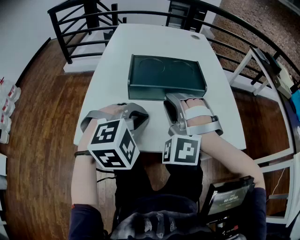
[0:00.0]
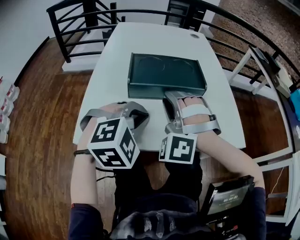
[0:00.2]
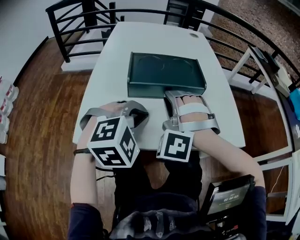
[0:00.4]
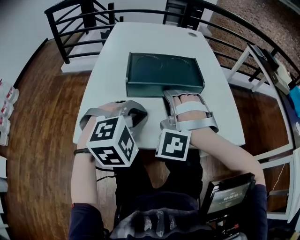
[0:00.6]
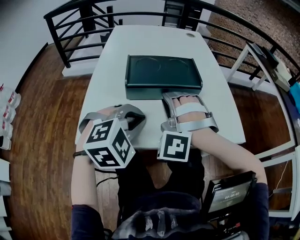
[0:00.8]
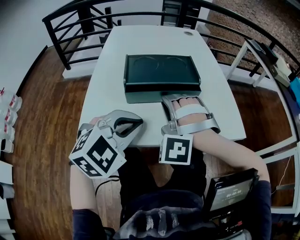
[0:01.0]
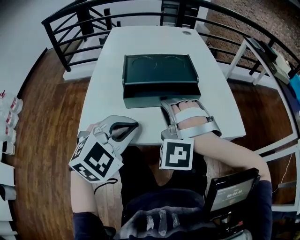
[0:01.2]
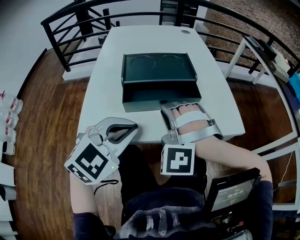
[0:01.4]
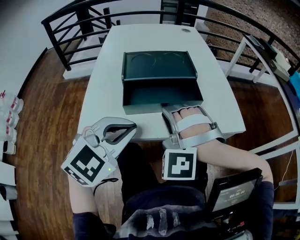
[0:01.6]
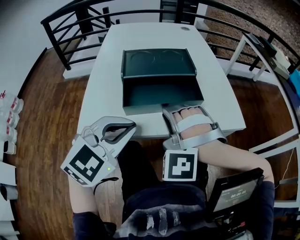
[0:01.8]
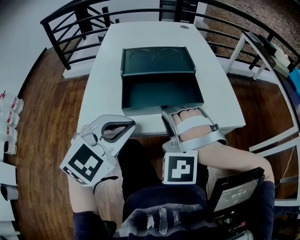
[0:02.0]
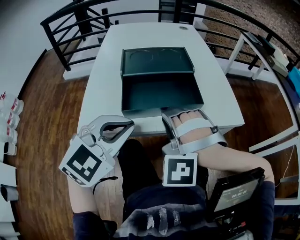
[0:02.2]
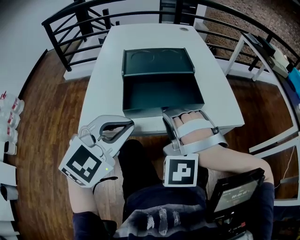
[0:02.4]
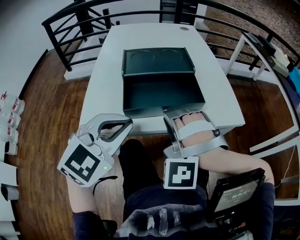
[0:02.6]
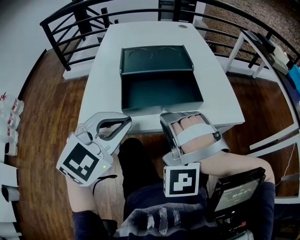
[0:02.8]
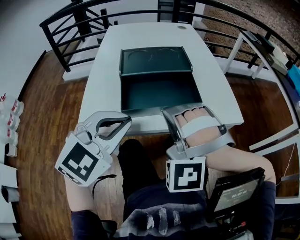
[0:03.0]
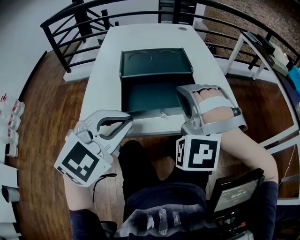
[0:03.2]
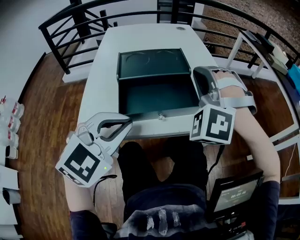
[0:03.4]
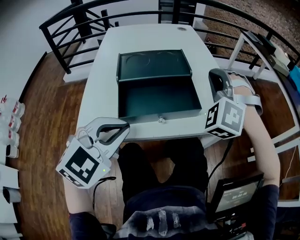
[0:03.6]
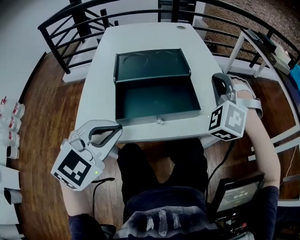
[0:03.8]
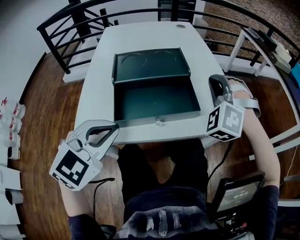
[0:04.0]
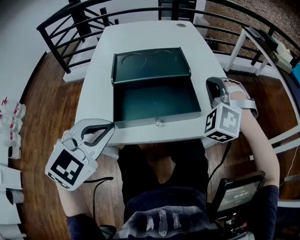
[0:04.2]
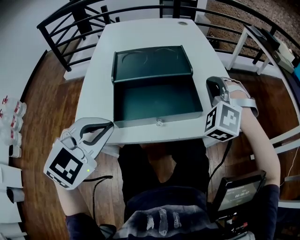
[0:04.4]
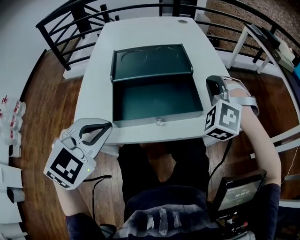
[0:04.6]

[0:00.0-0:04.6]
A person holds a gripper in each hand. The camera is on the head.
0:00.0 to 0:01.6: The left gripper moves some 10 cm, and rotates some 30 degrees.
0:03.0 to 0:04.6: The left gripper moves approximately 5 cm.

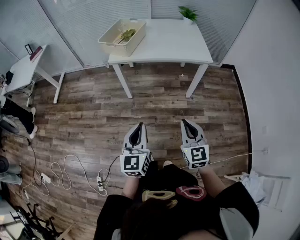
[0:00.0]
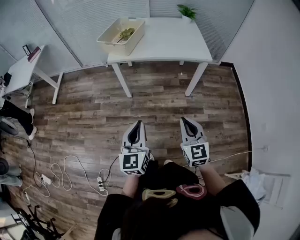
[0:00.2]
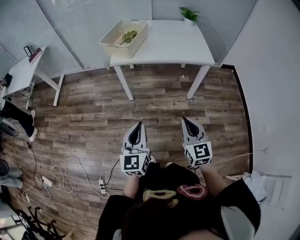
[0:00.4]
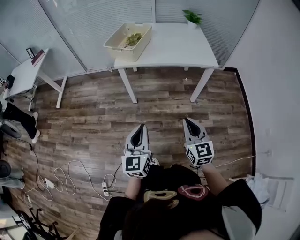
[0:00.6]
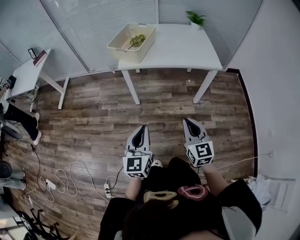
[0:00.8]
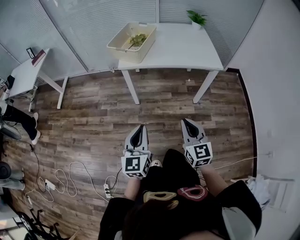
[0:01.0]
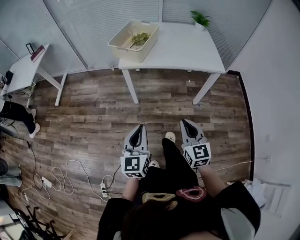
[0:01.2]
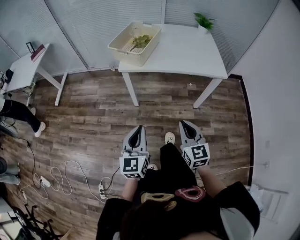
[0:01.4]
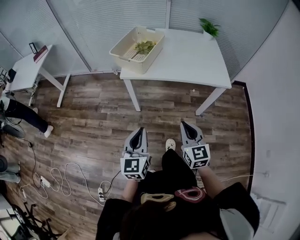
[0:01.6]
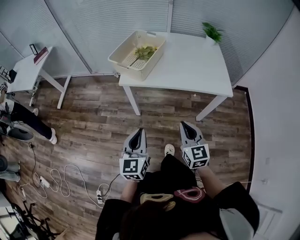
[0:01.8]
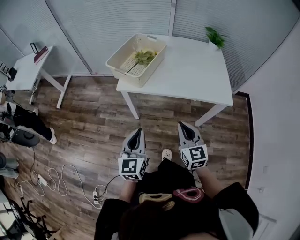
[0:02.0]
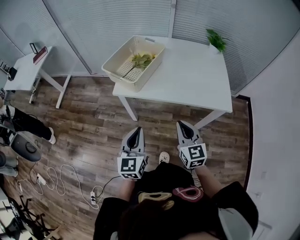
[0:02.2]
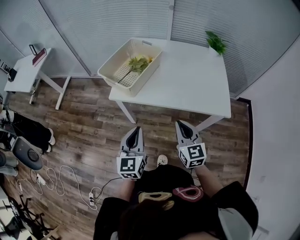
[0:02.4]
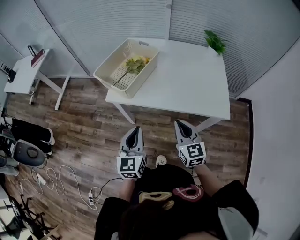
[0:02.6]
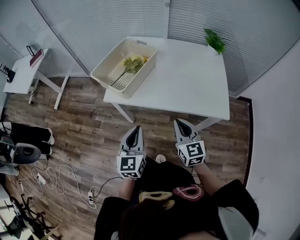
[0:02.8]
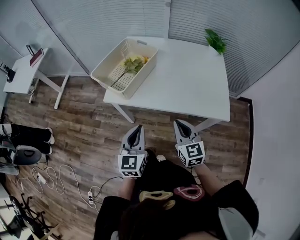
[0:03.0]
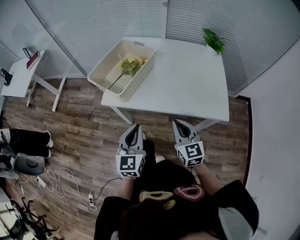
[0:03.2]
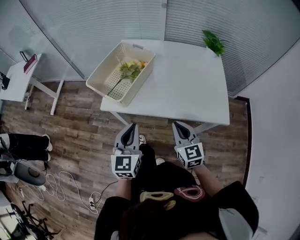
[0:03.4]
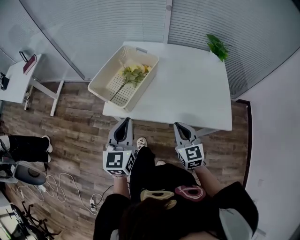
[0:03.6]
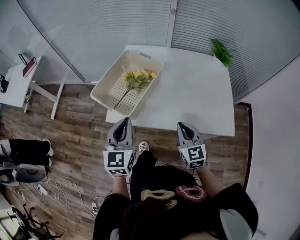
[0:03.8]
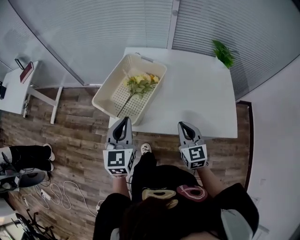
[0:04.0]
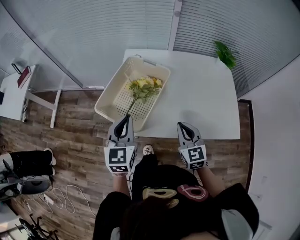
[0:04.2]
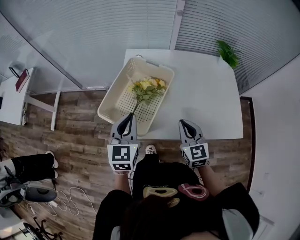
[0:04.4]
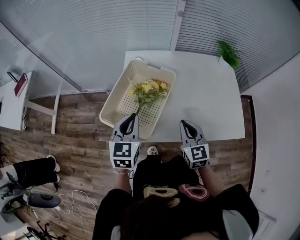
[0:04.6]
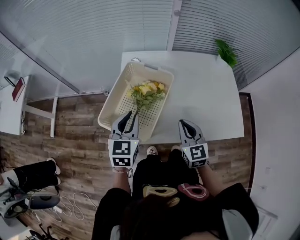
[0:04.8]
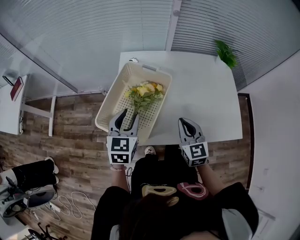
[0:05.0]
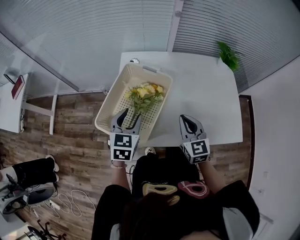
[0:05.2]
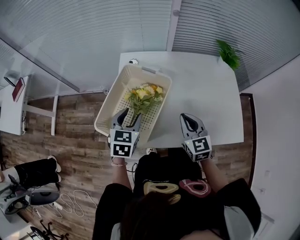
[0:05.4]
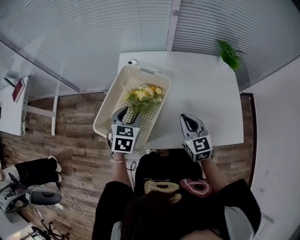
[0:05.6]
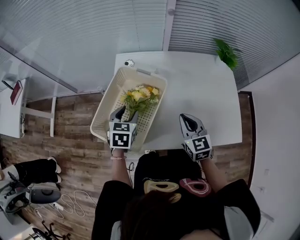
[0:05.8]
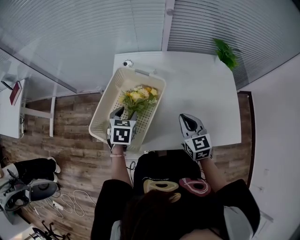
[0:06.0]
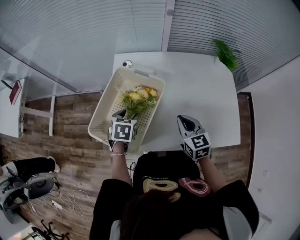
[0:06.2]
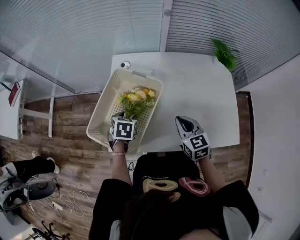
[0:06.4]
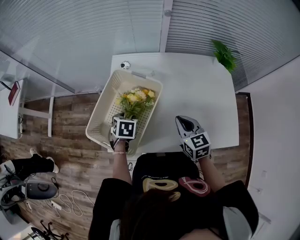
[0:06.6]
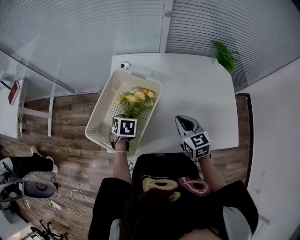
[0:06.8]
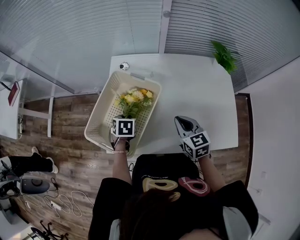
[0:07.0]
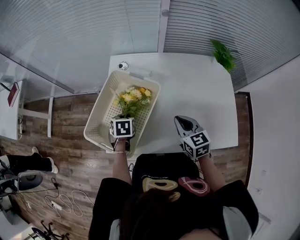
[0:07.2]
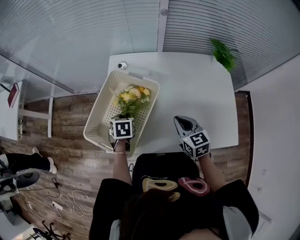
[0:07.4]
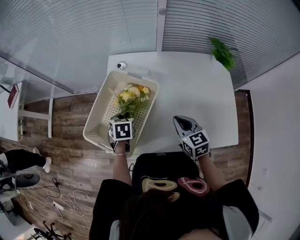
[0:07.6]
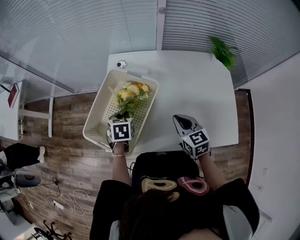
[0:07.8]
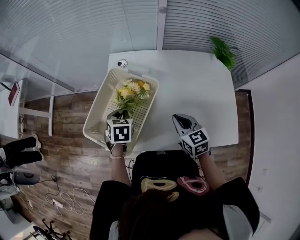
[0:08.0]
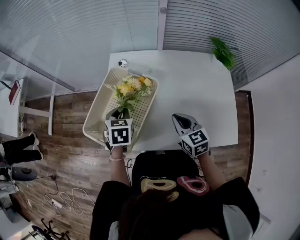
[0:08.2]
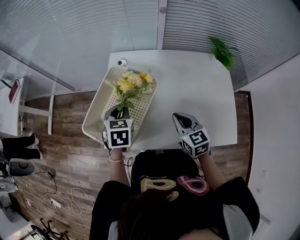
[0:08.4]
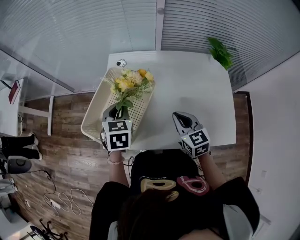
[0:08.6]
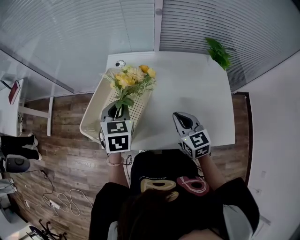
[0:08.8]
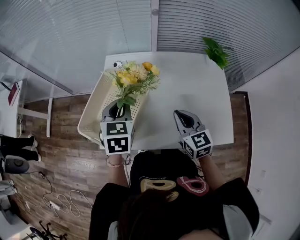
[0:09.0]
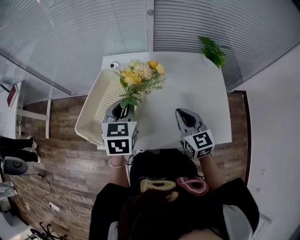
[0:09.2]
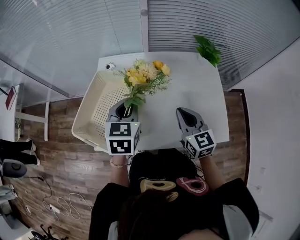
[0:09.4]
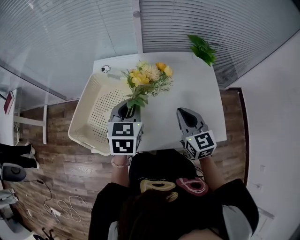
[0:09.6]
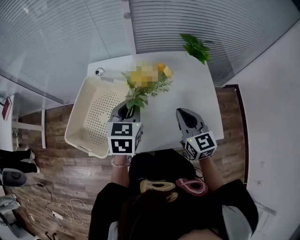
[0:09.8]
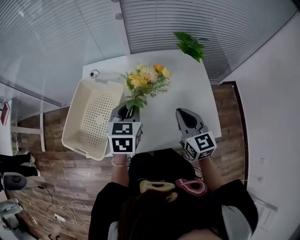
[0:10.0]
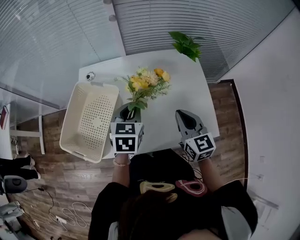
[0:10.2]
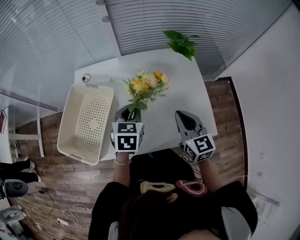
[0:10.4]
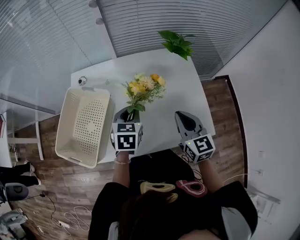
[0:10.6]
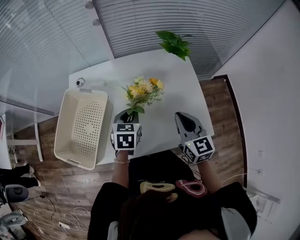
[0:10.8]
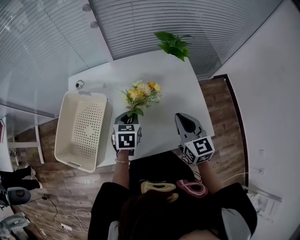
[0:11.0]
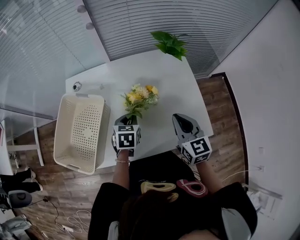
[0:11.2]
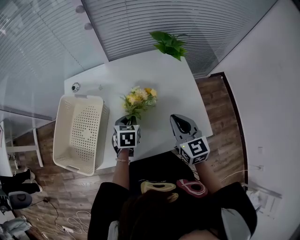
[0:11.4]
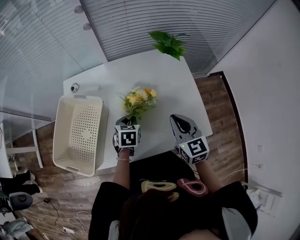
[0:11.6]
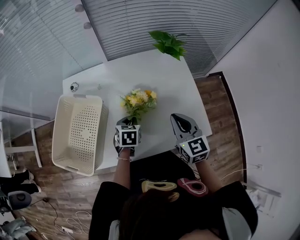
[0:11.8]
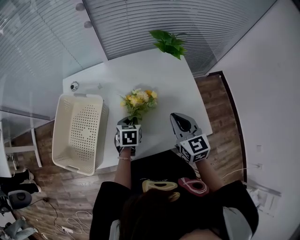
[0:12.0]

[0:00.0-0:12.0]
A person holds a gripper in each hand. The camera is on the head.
0:00.0 to 0:01.6: The grippers both shift forward by approximately 20 cm.
0:01.6 to 0:03.0: Both grippers travel together forward and to the right, about 25 cm.
0:03.0 to 0:04.4: The two grippers go some 25 cm forward and to the left.
0:04.4 to 0:06.0: The right gripper goes about 10 cm forward. Meanwhile the left gripper goes some 15 cm forward and downward, tilts its fingers roughly 30 degrees downward, and opens its fingers.
0:06.0 to 0:07.6: The left gripper travels downward by roughly 5 cm, and closes up.
0:07.6 to 0:09.0: The left gripper heads upward, covering roughly 20 cm, and rotates about 30 degrees, while the right gripper travels upward by roughly 5 cm.
0:09.0 to 0:10.4: Both grippers move to the right, roughly 15 cm.
0:10.4 to 0:12.0: The left gripper travels downward by about 15 cm.

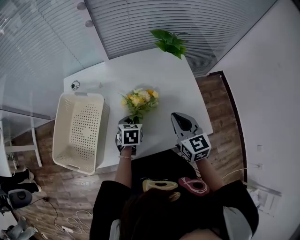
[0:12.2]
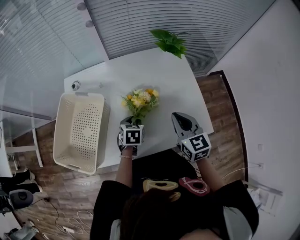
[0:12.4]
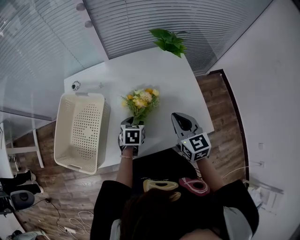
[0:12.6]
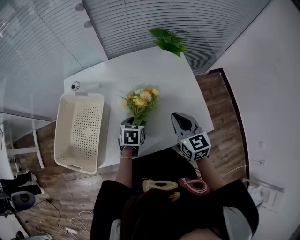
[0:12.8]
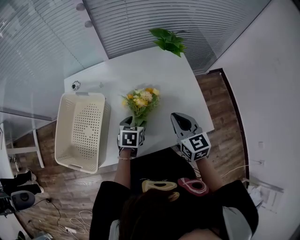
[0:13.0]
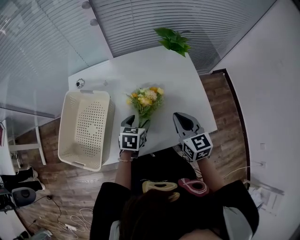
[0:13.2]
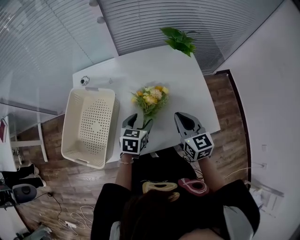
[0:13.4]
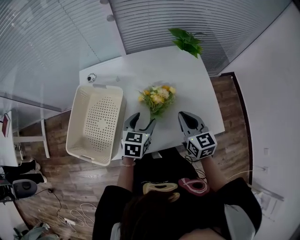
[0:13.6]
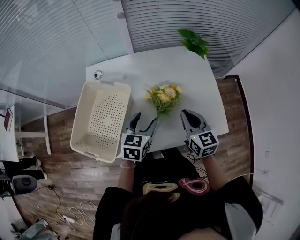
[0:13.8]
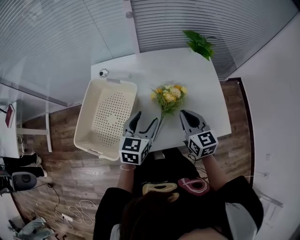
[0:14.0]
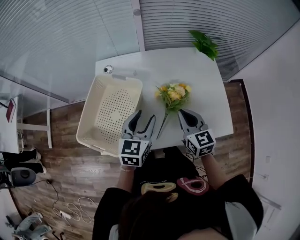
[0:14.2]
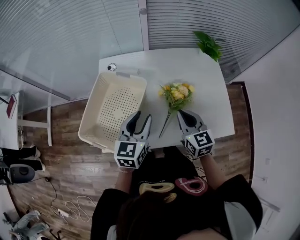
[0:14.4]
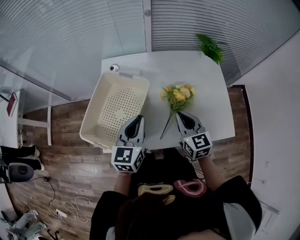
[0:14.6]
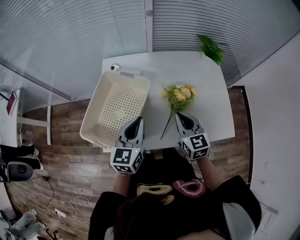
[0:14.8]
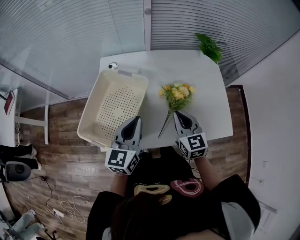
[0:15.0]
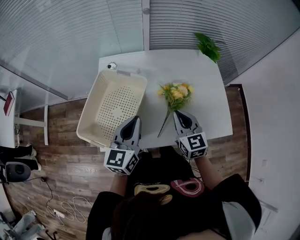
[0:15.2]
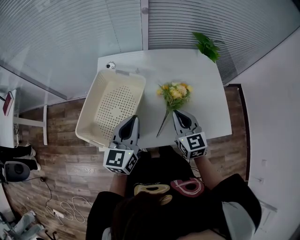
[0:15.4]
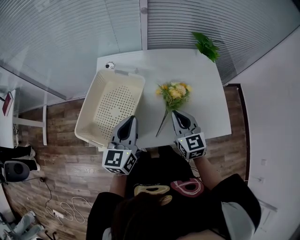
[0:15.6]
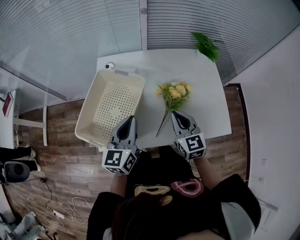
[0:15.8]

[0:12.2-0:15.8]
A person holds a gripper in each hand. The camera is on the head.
0:12.2 to 0:14.0: The left gripper shifts about 15 cm upward and to the left, rotates some 30 degrees, and opens up; the right gripper shifts some 10 cm to the left.
0:14.0 to 0:15.8: The left gripper moves to the left and upward, about 10 cm, swivels approximately 20 degrees, and closes. Meanwhile the right gripper is displaced to the left by roughly 5 cm.

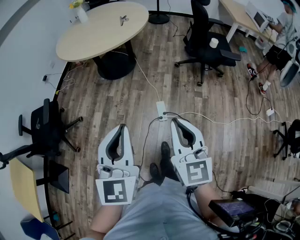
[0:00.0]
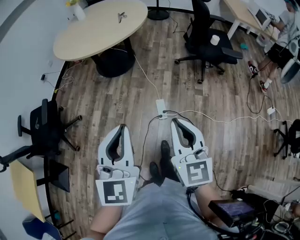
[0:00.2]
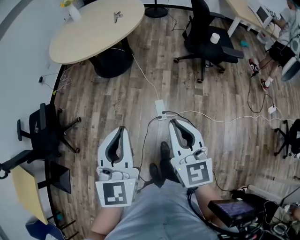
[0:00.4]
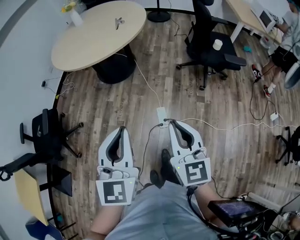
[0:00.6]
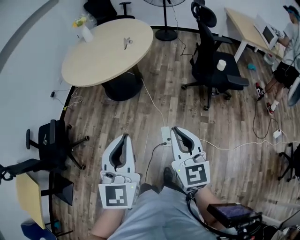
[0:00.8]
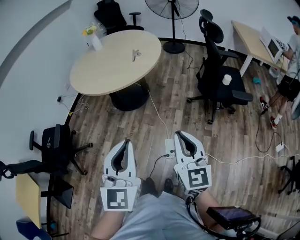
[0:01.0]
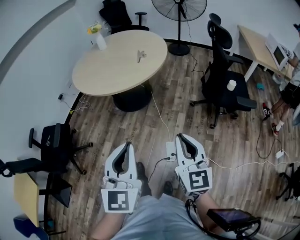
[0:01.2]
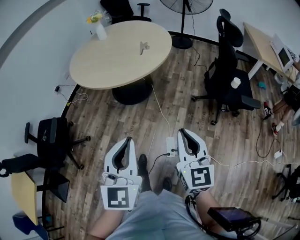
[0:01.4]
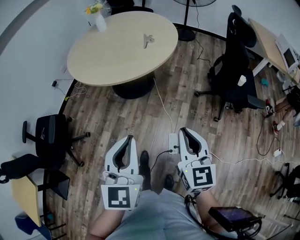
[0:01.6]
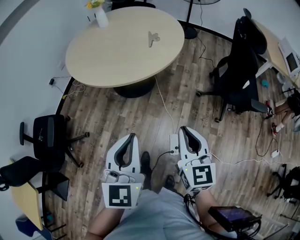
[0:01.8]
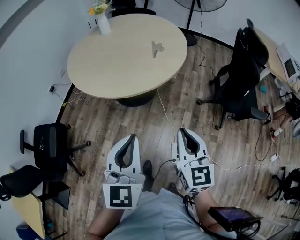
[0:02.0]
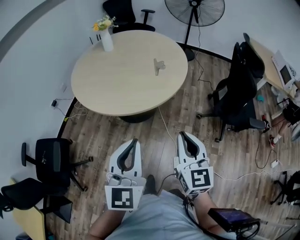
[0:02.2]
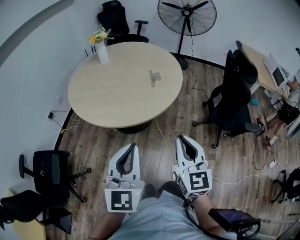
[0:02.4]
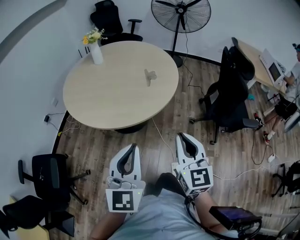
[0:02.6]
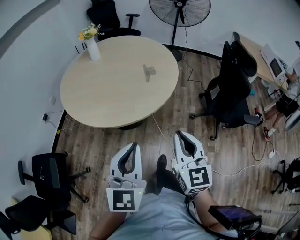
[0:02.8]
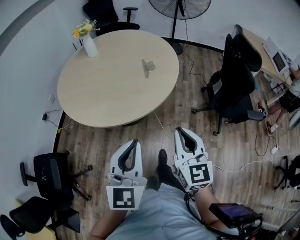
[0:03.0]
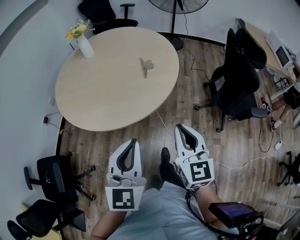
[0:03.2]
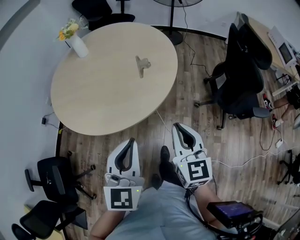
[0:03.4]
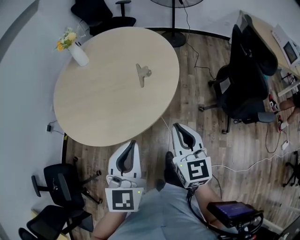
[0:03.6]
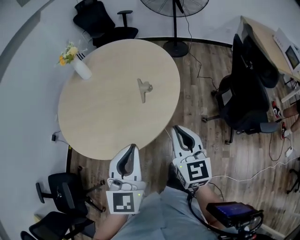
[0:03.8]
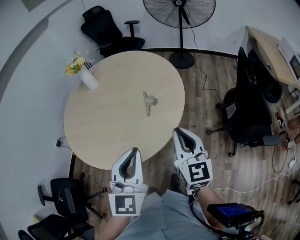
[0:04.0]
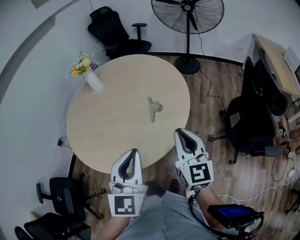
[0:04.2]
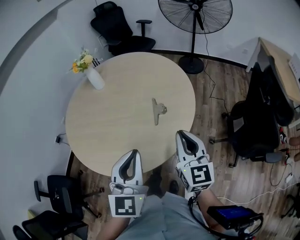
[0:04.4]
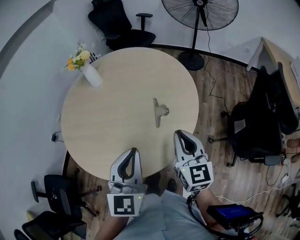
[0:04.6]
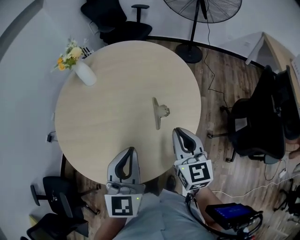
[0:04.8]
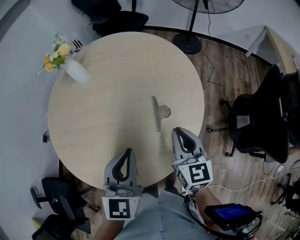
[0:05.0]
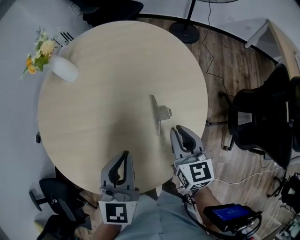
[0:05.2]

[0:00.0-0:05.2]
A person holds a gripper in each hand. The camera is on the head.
0:00.0 to 0:01.8: Both grippers move forward, about 40 cm.
0:01.8 to 0:03.4: Both grippers move forward, roughly 25 cm.
0:03.4 to 0:05.2: Both grippers are carried forward, about 40 cm.
